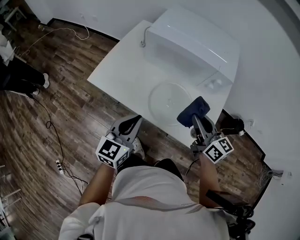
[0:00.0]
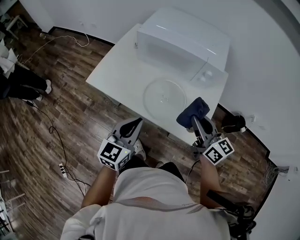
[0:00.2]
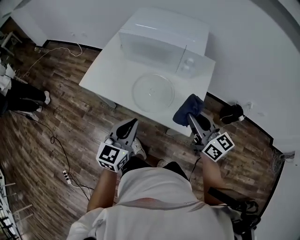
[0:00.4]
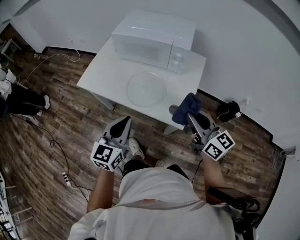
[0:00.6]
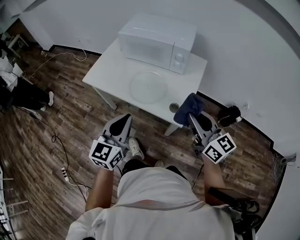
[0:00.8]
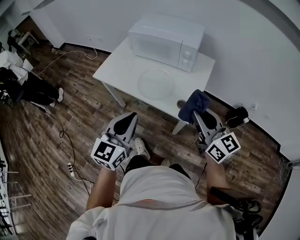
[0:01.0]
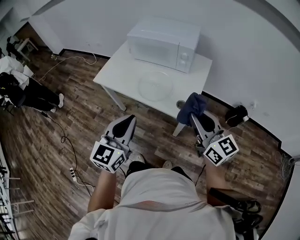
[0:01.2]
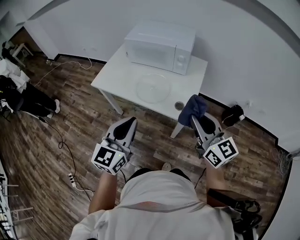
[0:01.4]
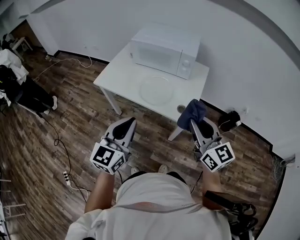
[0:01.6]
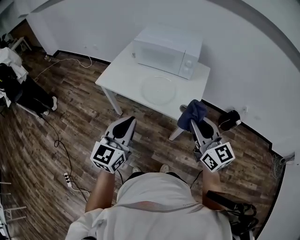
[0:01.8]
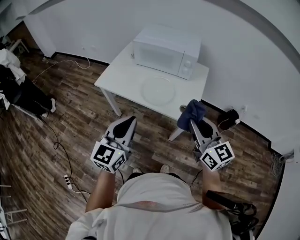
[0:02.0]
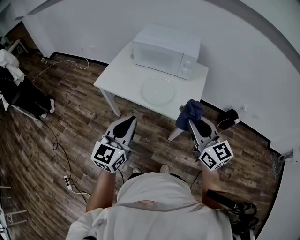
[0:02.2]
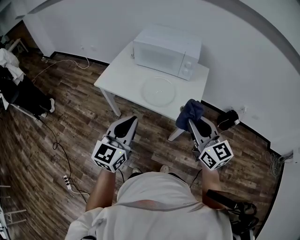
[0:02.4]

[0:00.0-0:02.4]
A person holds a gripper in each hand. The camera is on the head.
0:00.0 to 0:01.2: The left gripper goes roughly 30 cm backward, upward and to the right, while the right gripper is displaced backward and upward by roughly 30 cm.
0:01.2 to 0:02.4: The two grippers go roughly 10 cm to the left.

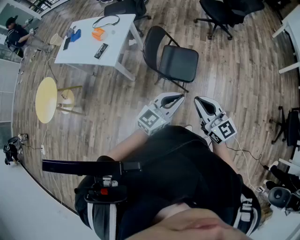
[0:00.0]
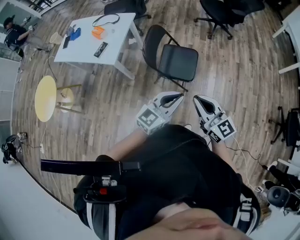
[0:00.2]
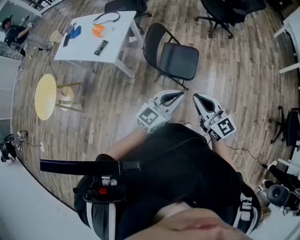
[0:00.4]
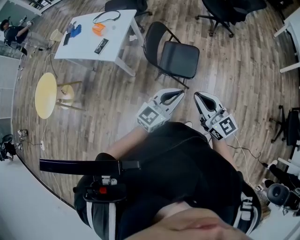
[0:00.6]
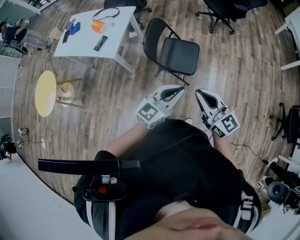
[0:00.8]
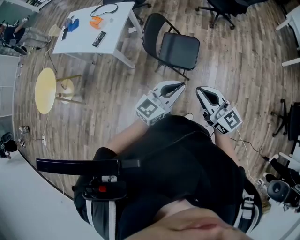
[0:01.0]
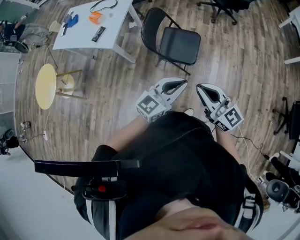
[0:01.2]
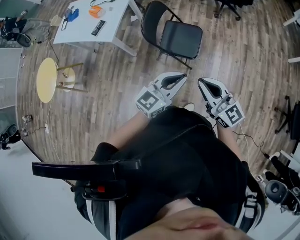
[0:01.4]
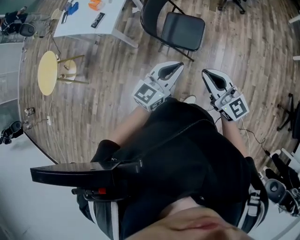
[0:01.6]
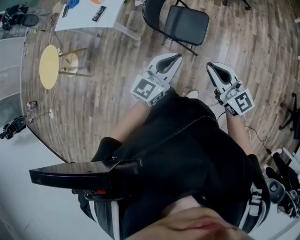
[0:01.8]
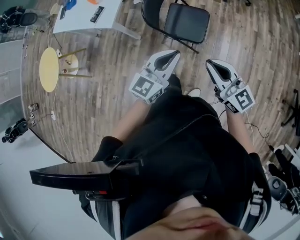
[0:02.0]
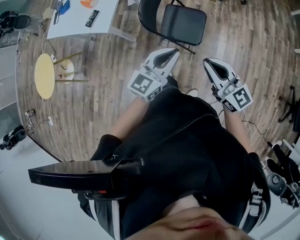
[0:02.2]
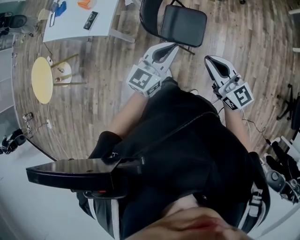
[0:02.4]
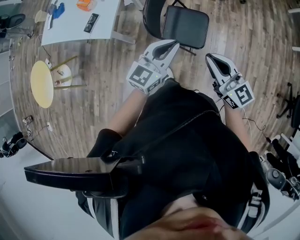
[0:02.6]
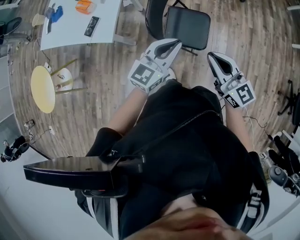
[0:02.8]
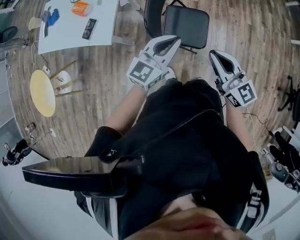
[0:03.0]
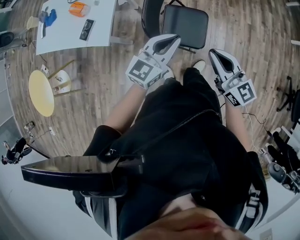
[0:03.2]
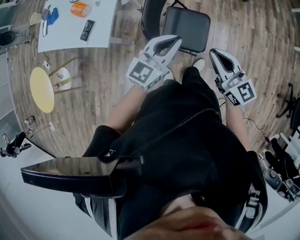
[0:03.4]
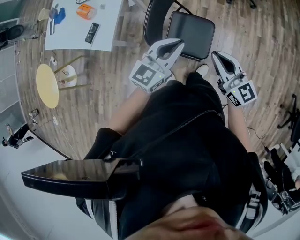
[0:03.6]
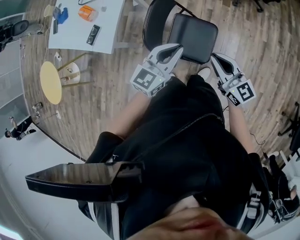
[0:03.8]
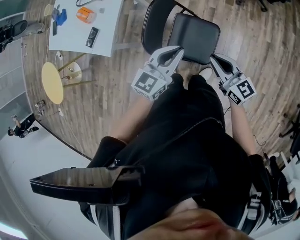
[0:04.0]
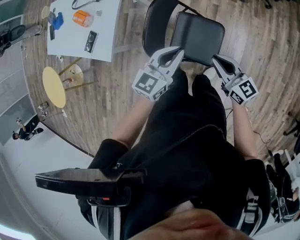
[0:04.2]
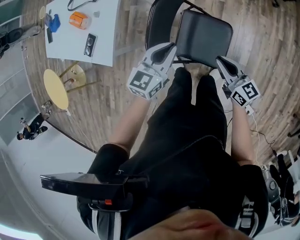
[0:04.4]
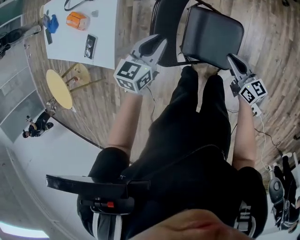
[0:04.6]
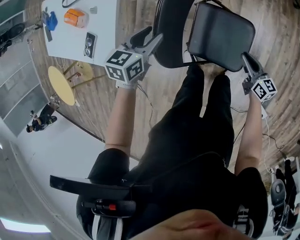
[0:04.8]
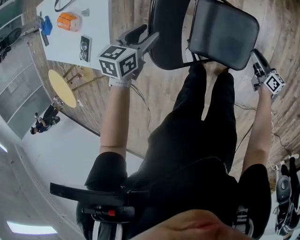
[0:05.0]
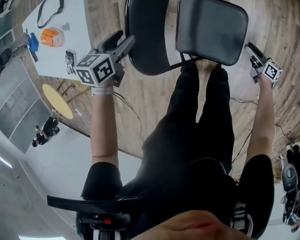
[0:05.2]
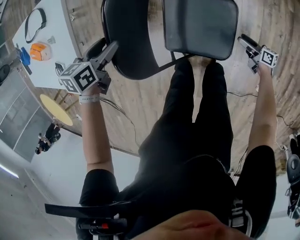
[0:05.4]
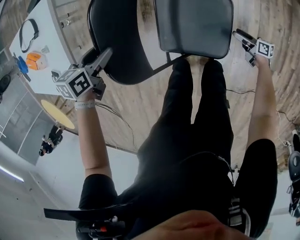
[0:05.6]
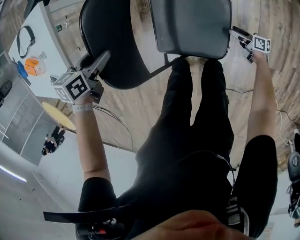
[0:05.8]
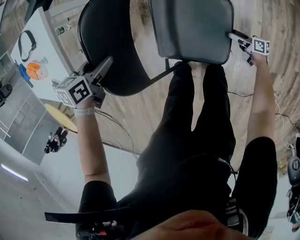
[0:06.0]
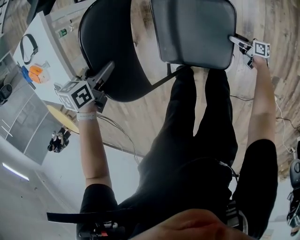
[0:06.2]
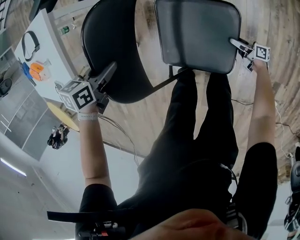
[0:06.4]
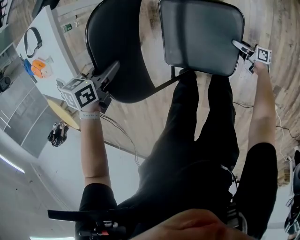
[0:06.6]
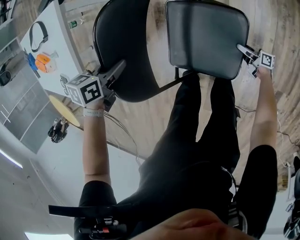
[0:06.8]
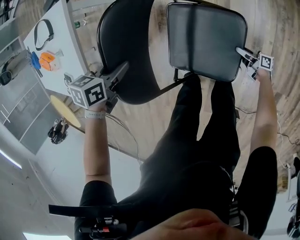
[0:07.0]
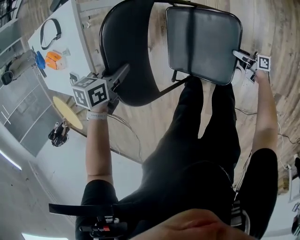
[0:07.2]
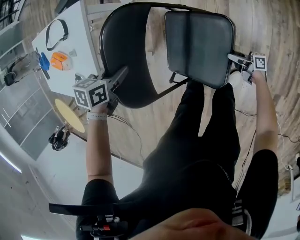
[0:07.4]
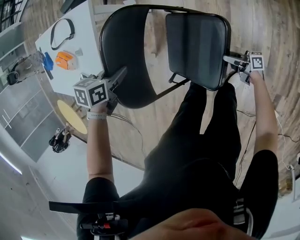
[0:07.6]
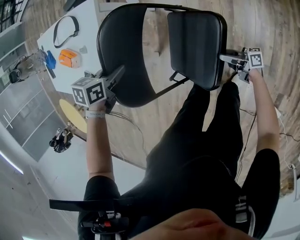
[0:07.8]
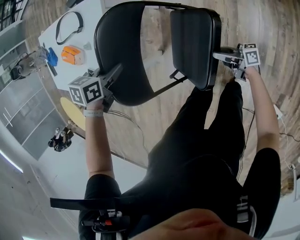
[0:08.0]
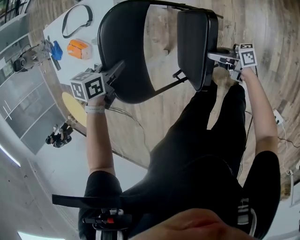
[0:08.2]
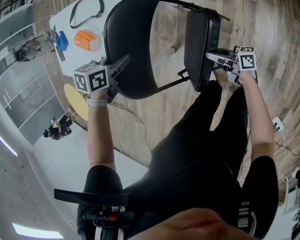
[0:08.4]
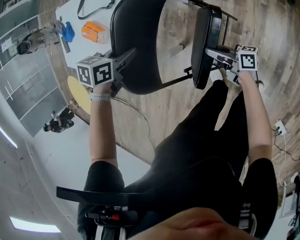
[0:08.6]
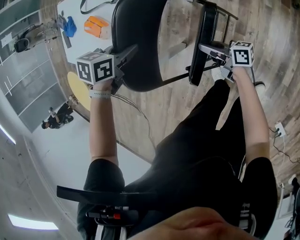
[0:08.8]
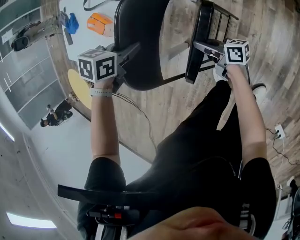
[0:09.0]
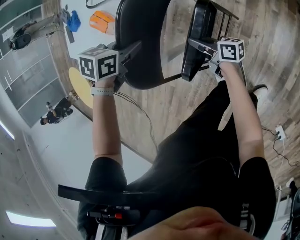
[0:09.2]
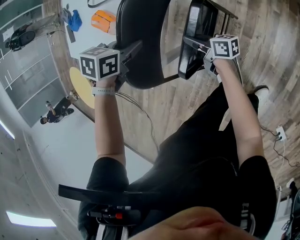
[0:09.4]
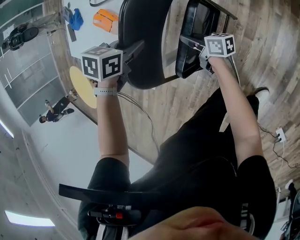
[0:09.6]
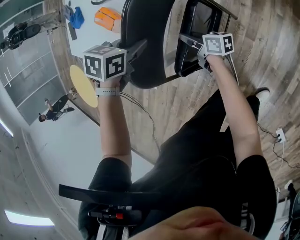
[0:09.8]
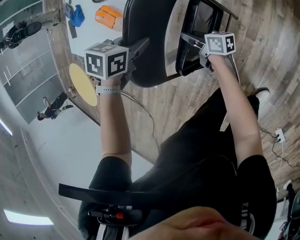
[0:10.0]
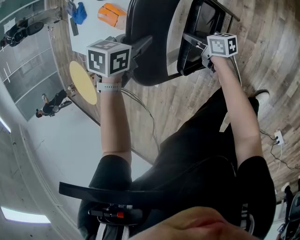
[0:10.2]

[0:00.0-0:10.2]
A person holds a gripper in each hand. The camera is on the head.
0:00.0 to 0:01.4: The grippers move only a little.
0:01.4 to 0:03.0: The left gripper goes some 30 cm forward and to the left. The right gripper is displaced forward by approximately 20 cm.
0:03.0 to 0:04.4: The left gripper shifts approximately 25 cm forward and downward, and turns by some 30 degrees, while the right gripper moves downward and forward, approximately 30 cm, and turns by about 30 degrees.
0:04.4 to 0:05.8: The right gripper heads downward, covering about 50 cm, twists some 50 degrees clockwise, seen from behind, and opens. Meanwhile the left gripper heads downward and to the left, covering about 25 cm, tilts its fingers about 30 degrees downward, and opens.
0:05.8 to 0:07.2: The left gripper closes; the right gripper changes place by roughly 10 cm, and swivels roughly 20 degrees.
0:07.2 to 0:08.8: The right gripper ends up about 50 cm from where it was, rotates some 20 degrees, and closes up. Meanwhile the left gripper moves approximately 25 cm.
0:08.8 to 0:10.2: The right gripper moves some 15 cm.

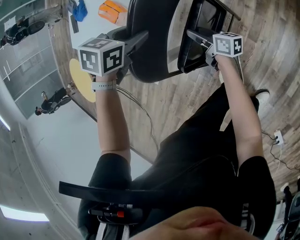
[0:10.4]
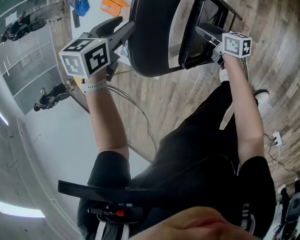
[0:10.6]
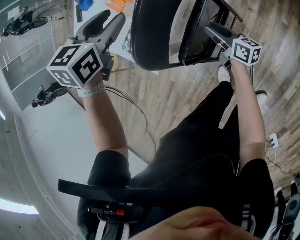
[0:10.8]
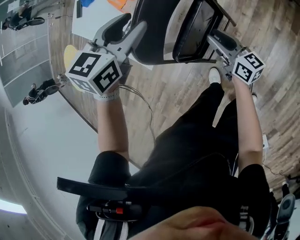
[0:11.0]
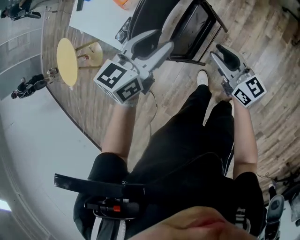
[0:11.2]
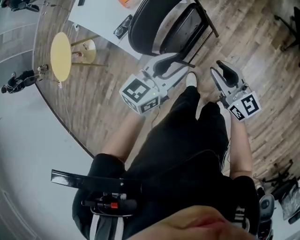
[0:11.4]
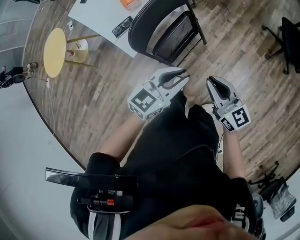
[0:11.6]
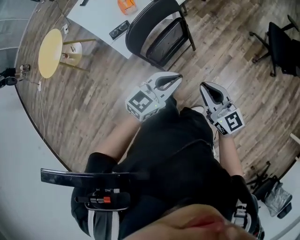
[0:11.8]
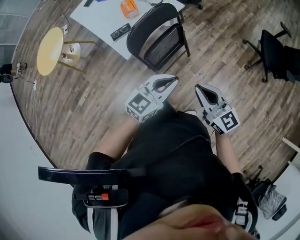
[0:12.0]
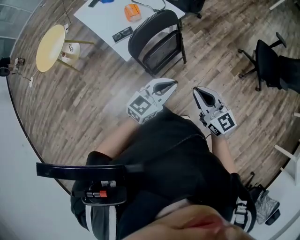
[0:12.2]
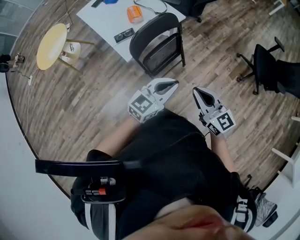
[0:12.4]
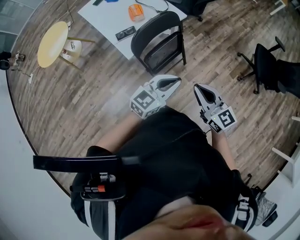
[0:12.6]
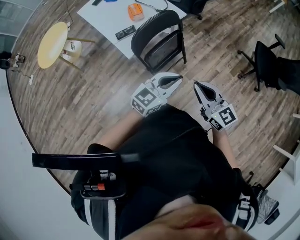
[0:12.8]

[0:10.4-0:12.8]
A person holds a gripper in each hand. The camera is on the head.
0:10.4 to 0:11.6: The right gripper shifts roughly 50 cm upward, backward and to the right, and rotates around the line of its fingers by about 50 degrees, counterclockwise from behind; the left gripper goes some 40 cm backward, to the right and upward, tilts its fingers some 50 degrees upward, and closes up.
0:11.6 to 0:12.8: The two grippers go roughly 15 cm upward and backward.

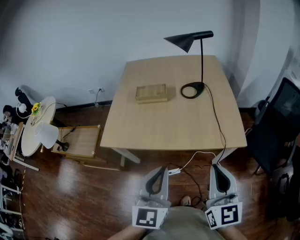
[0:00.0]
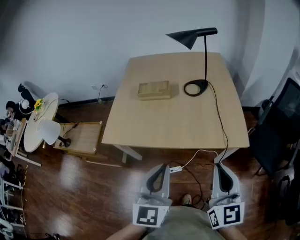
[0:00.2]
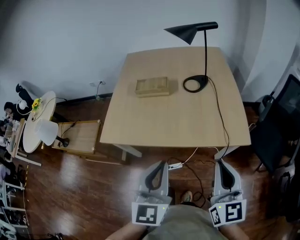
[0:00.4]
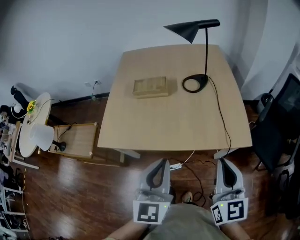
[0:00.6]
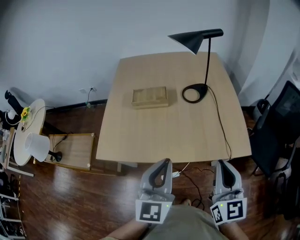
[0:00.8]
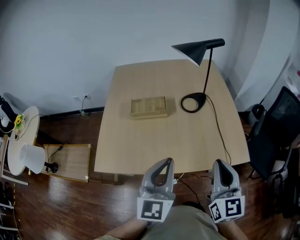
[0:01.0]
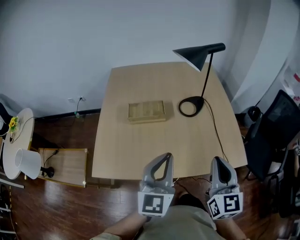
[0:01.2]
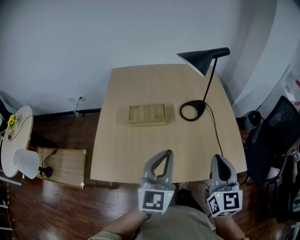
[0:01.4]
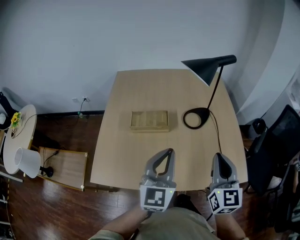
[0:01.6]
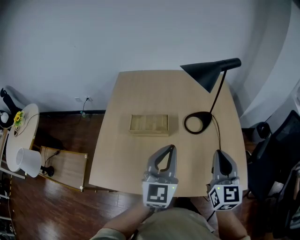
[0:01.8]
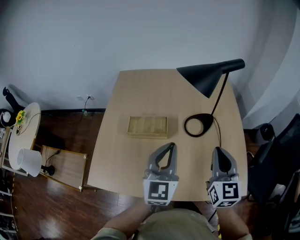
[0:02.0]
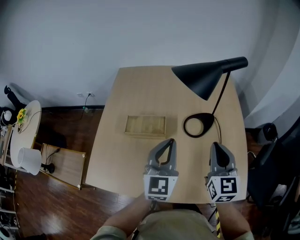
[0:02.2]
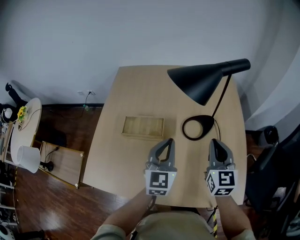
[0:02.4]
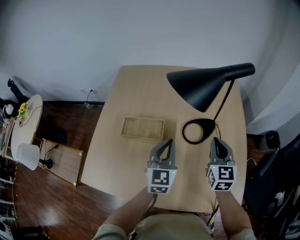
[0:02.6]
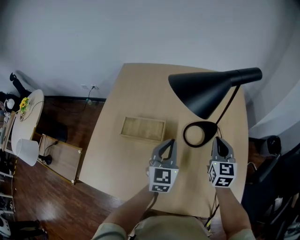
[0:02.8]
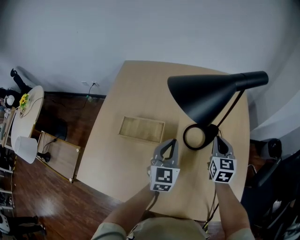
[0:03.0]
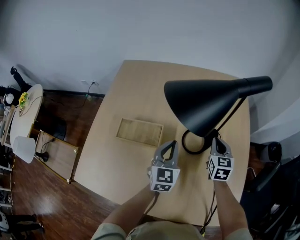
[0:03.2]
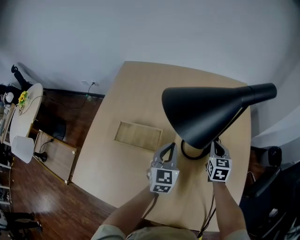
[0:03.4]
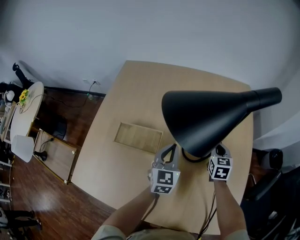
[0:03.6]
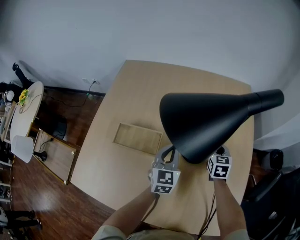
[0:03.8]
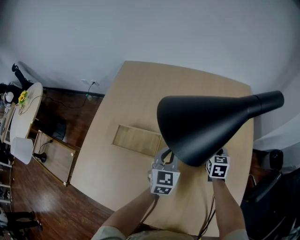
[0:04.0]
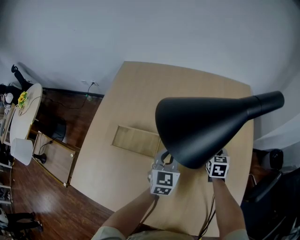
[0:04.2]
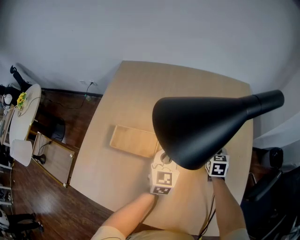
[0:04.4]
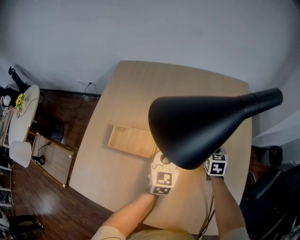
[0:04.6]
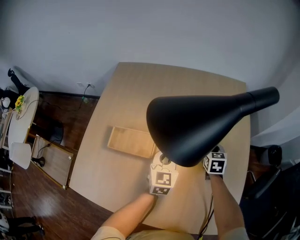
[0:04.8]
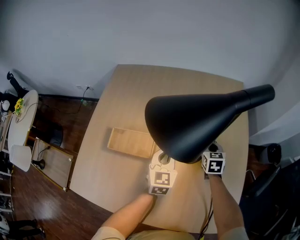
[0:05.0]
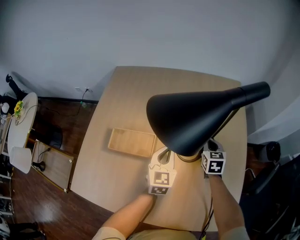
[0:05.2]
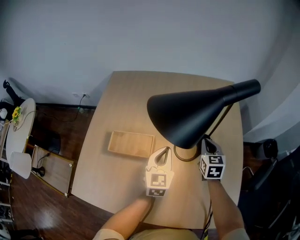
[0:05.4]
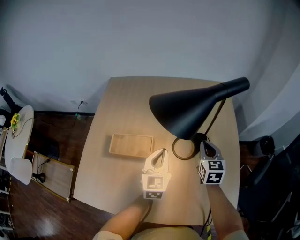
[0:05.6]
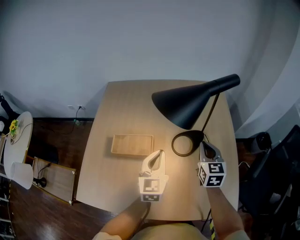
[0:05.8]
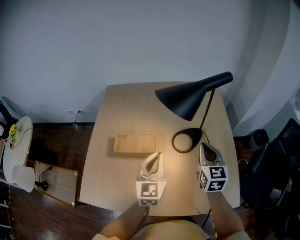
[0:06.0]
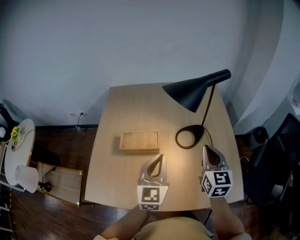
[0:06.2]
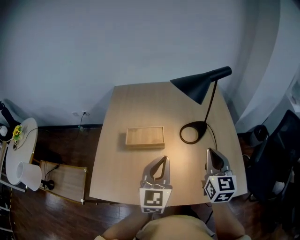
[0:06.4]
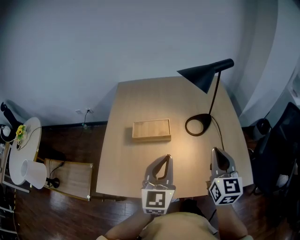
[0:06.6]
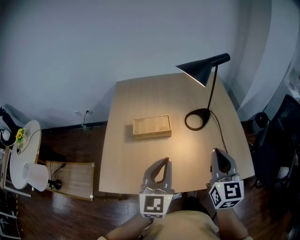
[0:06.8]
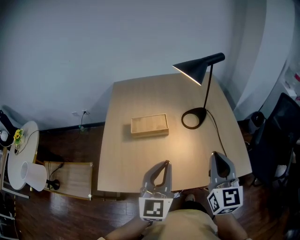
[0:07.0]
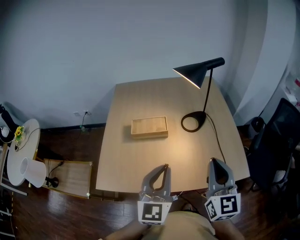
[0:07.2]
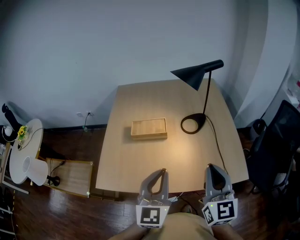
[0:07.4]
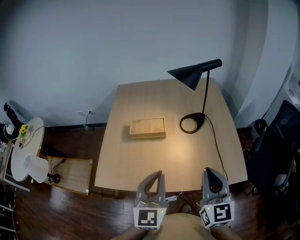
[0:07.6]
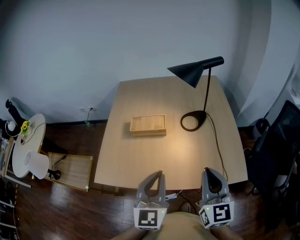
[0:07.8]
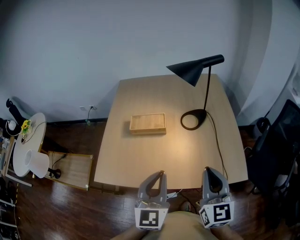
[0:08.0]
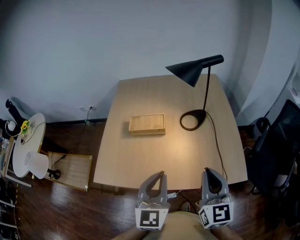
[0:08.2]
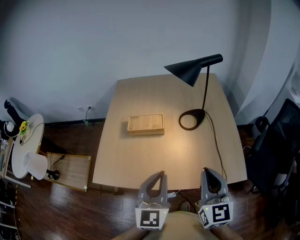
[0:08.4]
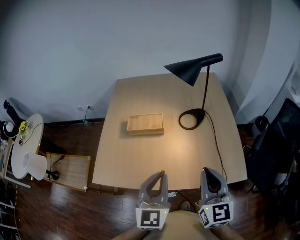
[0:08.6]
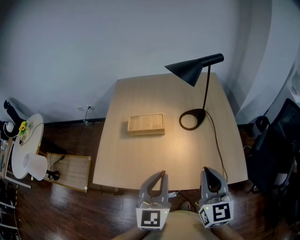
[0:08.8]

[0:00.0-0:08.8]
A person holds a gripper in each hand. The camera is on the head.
0:00.0 to 0:01.4: The two grippers go some 25 cm forward.
0:01.4 to 0:03.0: Both grippers move forward and downward, roughly 35 cm. The left gripper rotates approximately 20 degrees.
0:03.0 to 0:04.4: The right gripper heads downward and forward, covering about 15 cm. The left gripper moves downward and forward, about 10 cm.
0:04.4 to 0:05.8: The left gripper travels upward and backward by approximately 15 cm. The right gripper is displaced upward and backward by some 20 cm, and swivels approximately 20 degrees.
0:05.8 to 0:07.4: Both grippers travel together backward and upward, about 35 cm.
0:07.4 to 0:08.8: The grippers move only a little.
